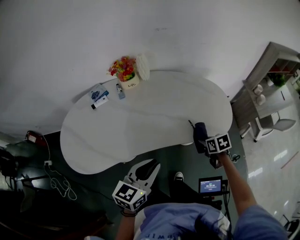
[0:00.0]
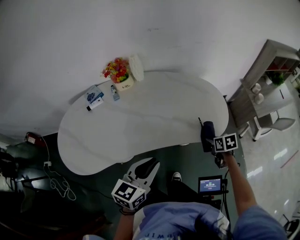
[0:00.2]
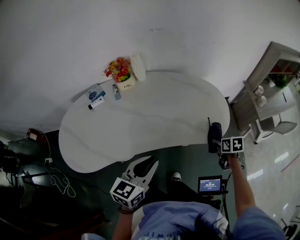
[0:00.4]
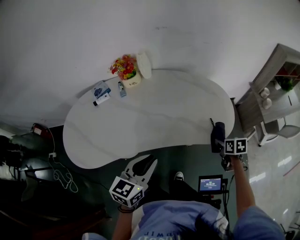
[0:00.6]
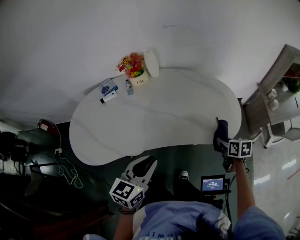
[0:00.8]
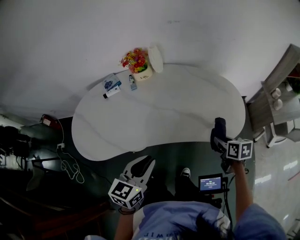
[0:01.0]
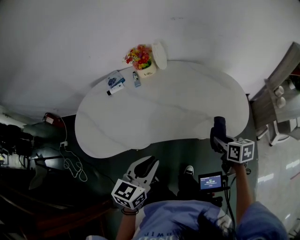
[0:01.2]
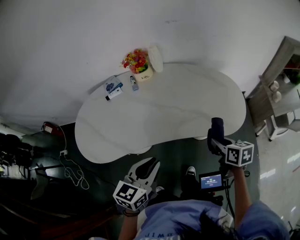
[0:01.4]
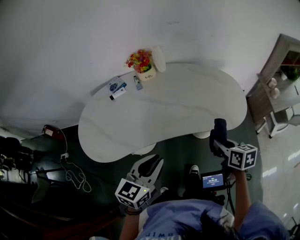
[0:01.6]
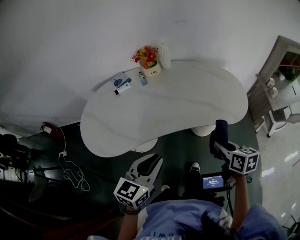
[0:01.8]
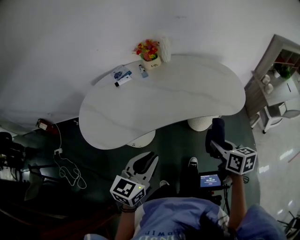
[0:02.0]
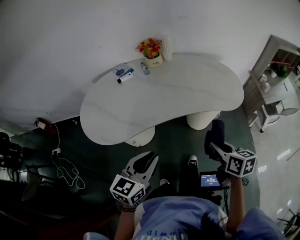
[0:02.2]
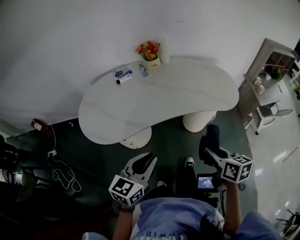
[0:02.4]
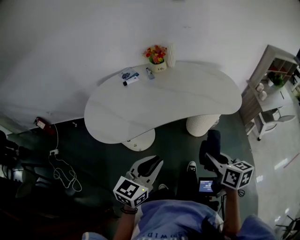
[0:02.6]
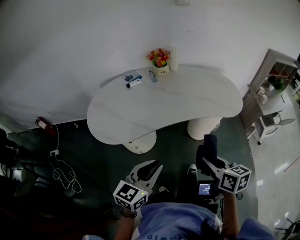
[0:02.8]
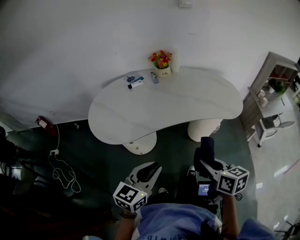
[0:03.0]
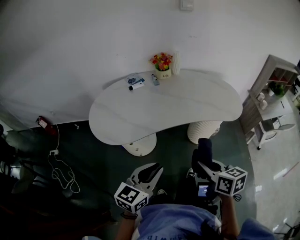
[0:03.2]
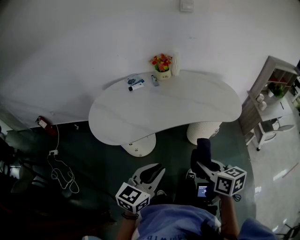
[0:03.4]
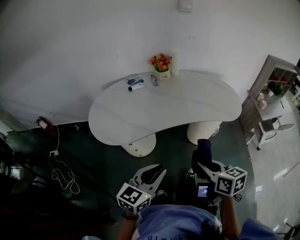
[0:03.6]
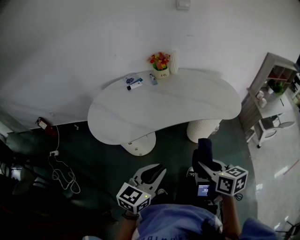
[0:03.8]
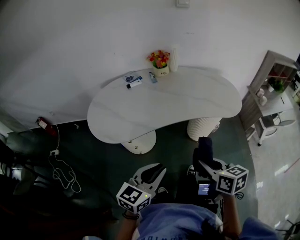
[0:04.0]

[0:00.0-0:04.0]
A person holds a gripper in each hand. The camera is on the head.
0:00.0 to 0:01.4: The right gripper goes some 10 cm upward, and reaches about 10 cm to the right, then returns.
0:01.4 to 0:02.6: Both grippers move backward and to the left, approximately 25 cm.
0:02.6 to 0:04.0: The grippers make only small movements.

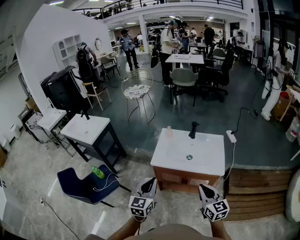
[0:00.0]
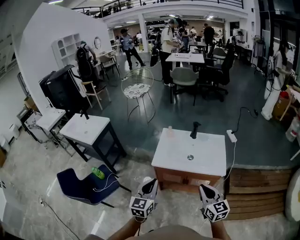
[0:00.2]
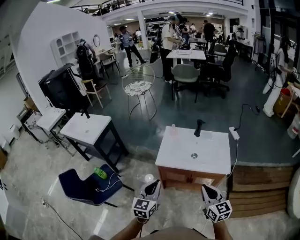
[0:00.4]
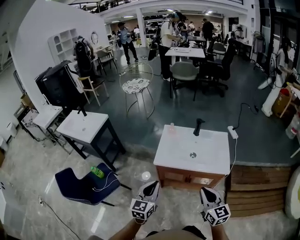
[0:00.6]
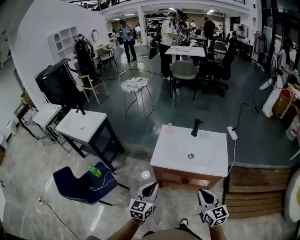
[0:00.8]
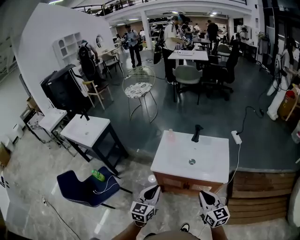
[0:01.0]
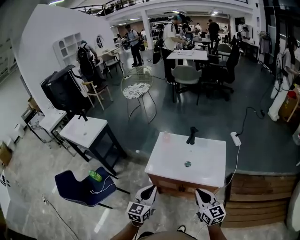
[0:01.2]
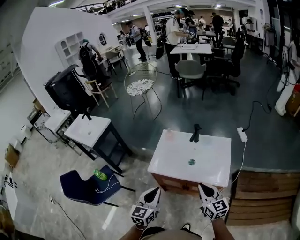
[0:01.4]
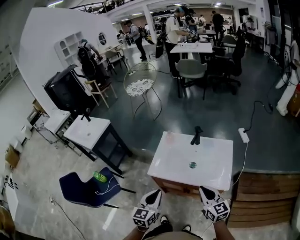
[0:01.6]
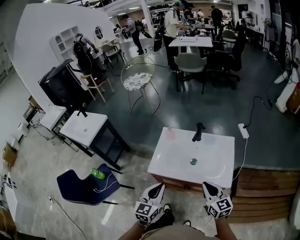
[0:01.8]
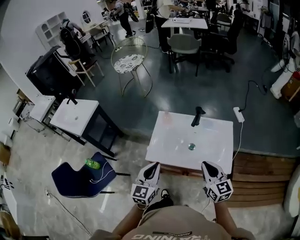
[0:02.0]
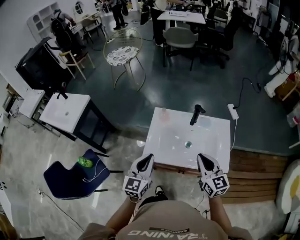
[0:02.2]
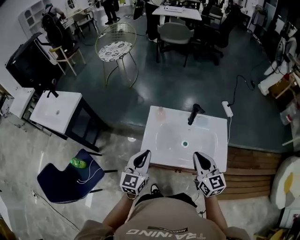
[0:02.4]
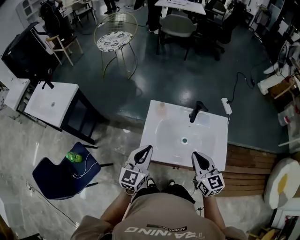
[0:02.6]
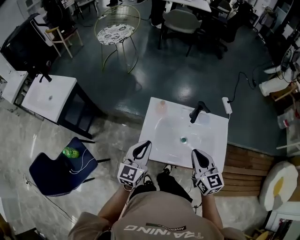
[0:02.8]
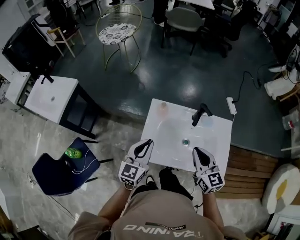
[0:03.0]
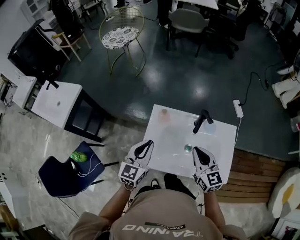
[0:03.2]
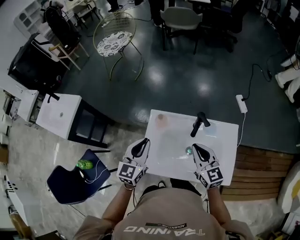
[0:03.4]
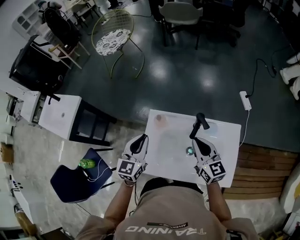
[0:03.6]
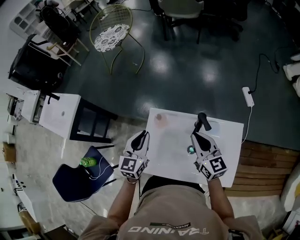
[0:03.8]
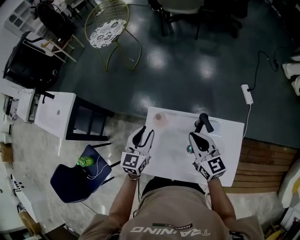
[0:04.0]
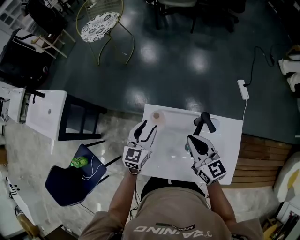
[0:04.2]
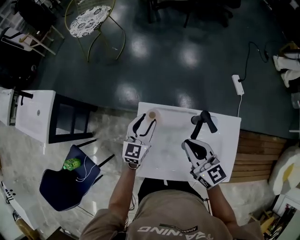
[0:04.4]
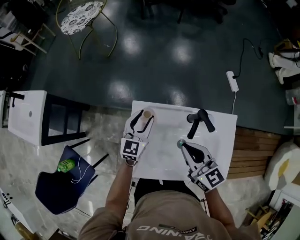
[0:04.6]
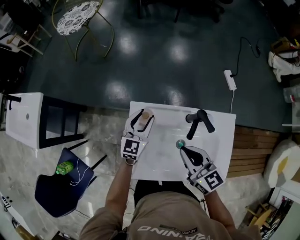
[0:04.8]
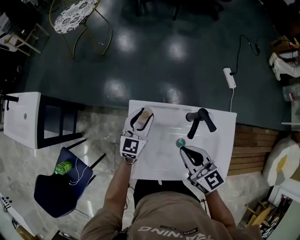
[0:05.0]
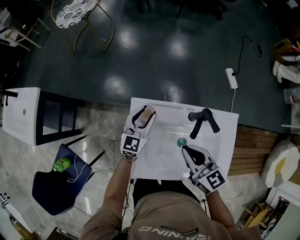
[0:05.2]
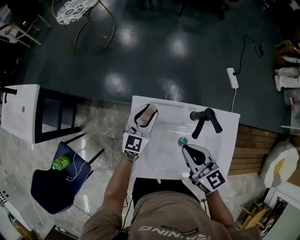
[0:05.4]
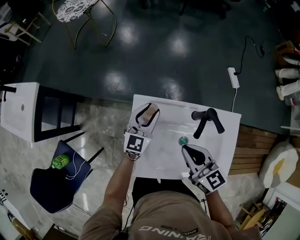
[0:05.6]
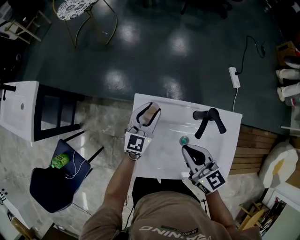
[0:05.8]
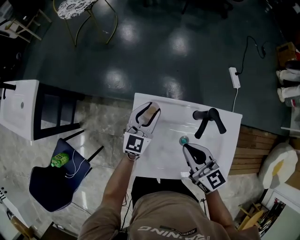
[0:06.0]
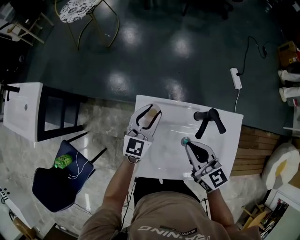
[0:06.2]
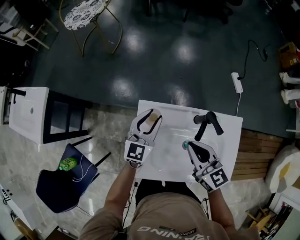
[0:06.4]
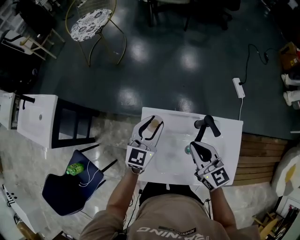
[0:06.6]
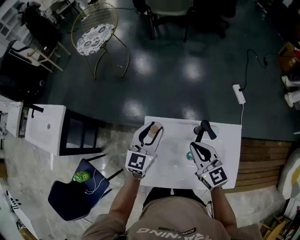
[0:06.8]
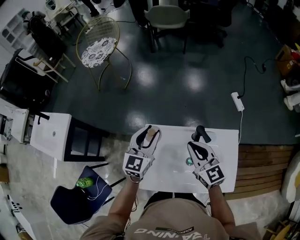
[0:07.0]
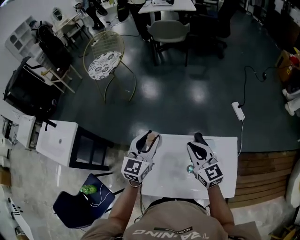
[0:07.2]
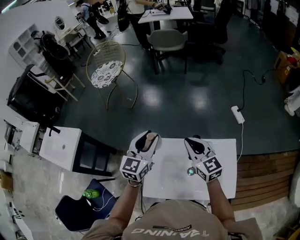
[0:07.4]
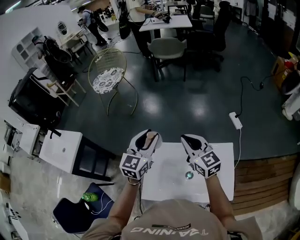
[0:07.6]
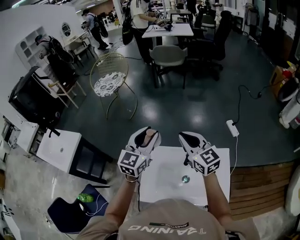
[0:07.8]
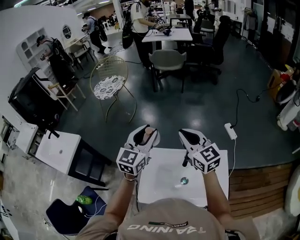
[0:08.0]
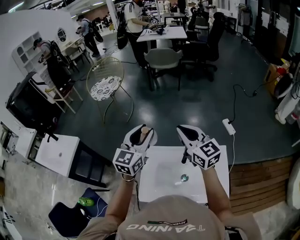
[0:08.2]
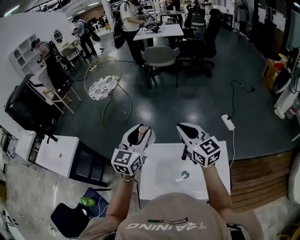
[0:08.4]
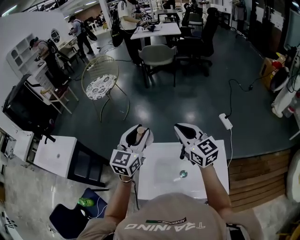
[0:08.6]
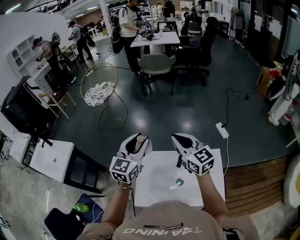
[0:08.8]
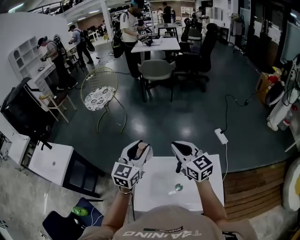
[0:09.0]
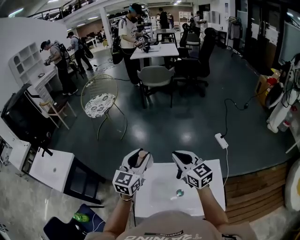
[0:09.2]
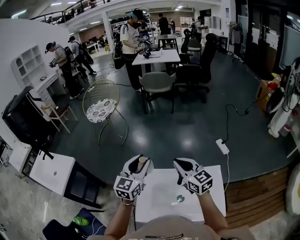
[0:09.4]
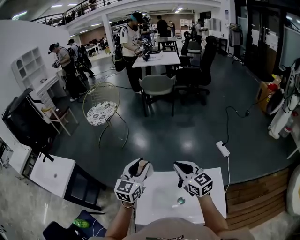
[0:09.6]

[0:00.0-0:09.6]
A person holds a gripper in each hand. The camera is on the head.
0:00.0 to 0:01.6: The right gripper travels forward by some 15 cm; the left gripper goes some 15 cm forward, downward and to the right.
0:01.6 to 0:03.2: Both grippers travel together forward, approximately 25 cm.
0:03.2 to 0:04.8: The left gripper goes some 25 cm forward and downward, and opens up, while the right gripper is displaced forward by some 10 cm.
0:04.8 to 0:06.4: The grippers make only small movements.
0:06.4 to 0:08.0: Both grippers travel together upward, about 25 cm. The right gripper changes its angle by some 20 degrees.
0:08.0 to 0:09.6: There are only small adjustments of the grippers.

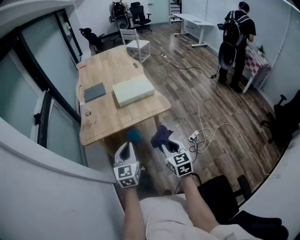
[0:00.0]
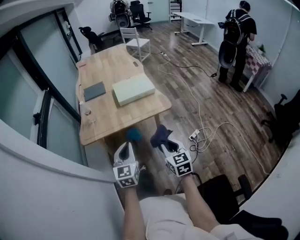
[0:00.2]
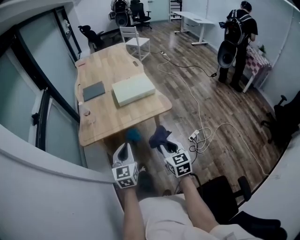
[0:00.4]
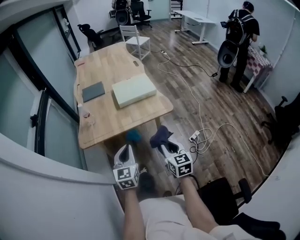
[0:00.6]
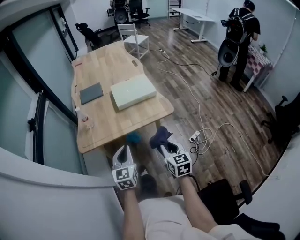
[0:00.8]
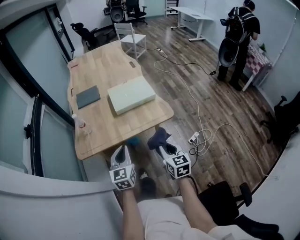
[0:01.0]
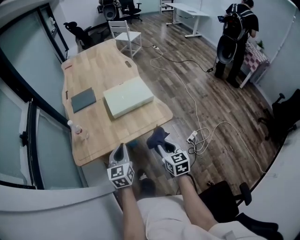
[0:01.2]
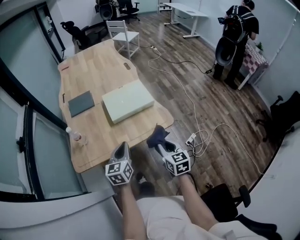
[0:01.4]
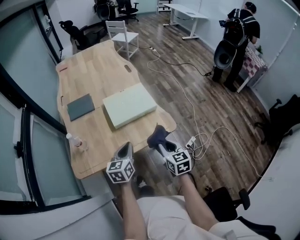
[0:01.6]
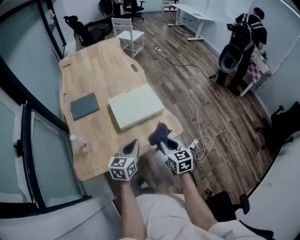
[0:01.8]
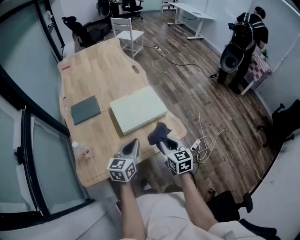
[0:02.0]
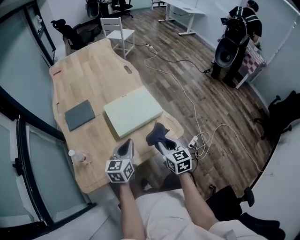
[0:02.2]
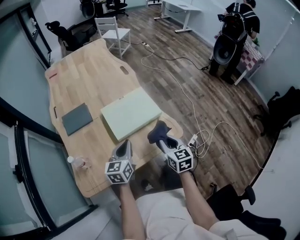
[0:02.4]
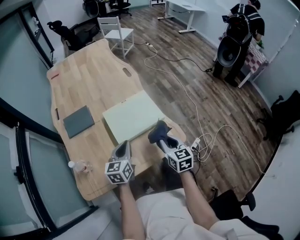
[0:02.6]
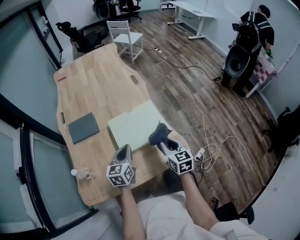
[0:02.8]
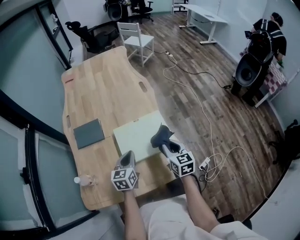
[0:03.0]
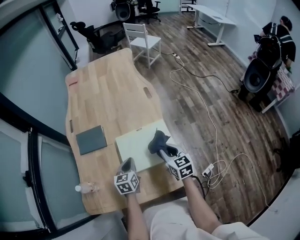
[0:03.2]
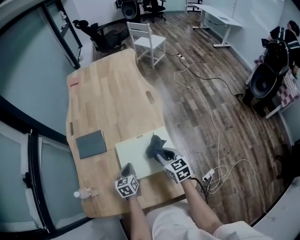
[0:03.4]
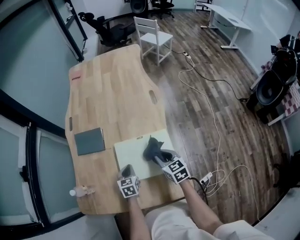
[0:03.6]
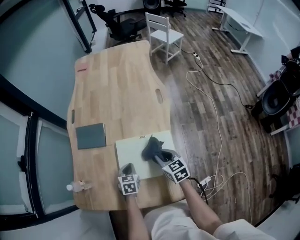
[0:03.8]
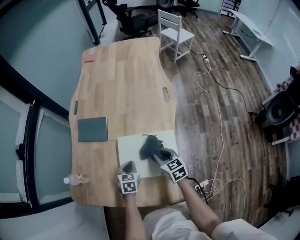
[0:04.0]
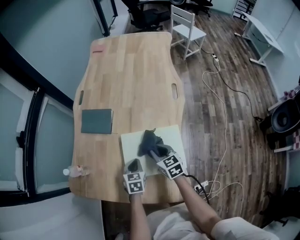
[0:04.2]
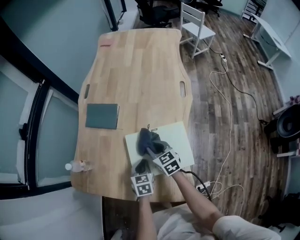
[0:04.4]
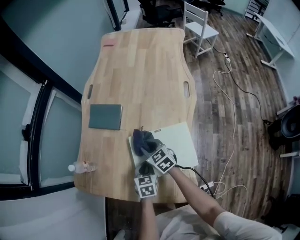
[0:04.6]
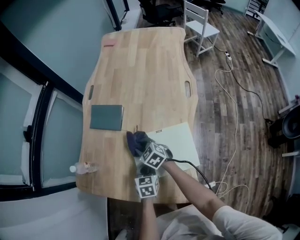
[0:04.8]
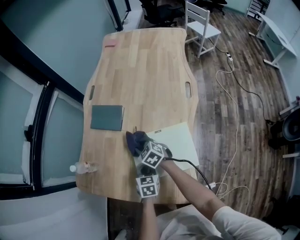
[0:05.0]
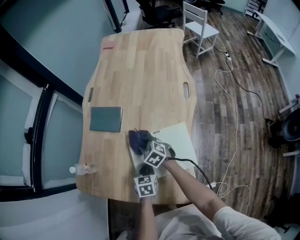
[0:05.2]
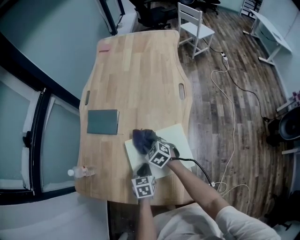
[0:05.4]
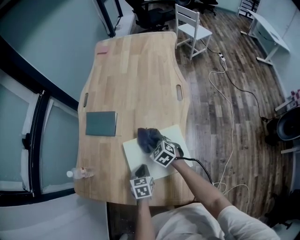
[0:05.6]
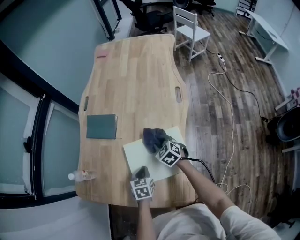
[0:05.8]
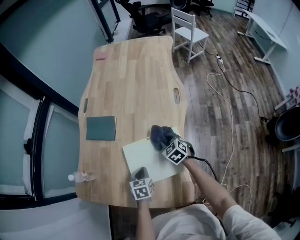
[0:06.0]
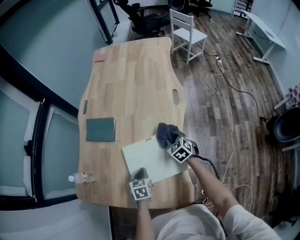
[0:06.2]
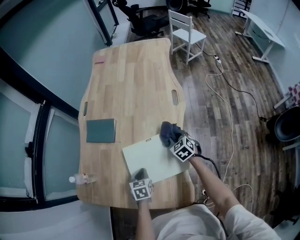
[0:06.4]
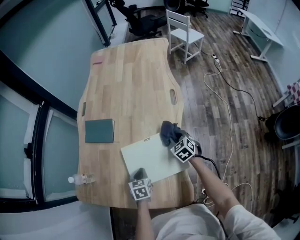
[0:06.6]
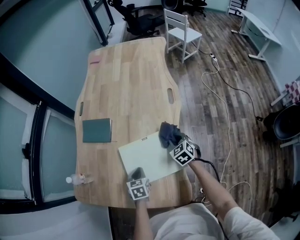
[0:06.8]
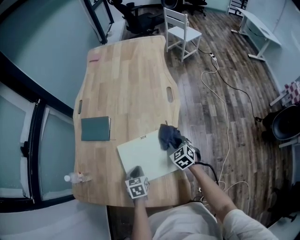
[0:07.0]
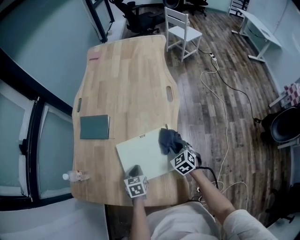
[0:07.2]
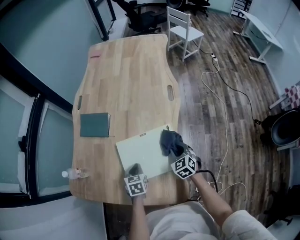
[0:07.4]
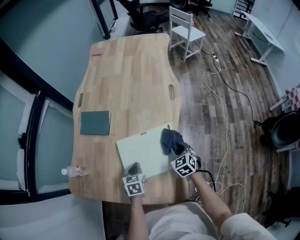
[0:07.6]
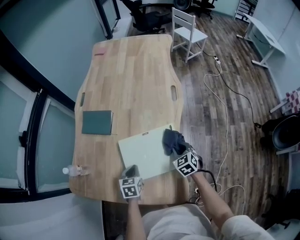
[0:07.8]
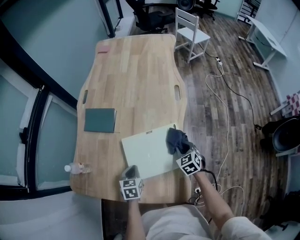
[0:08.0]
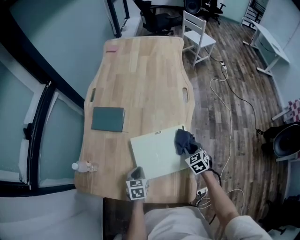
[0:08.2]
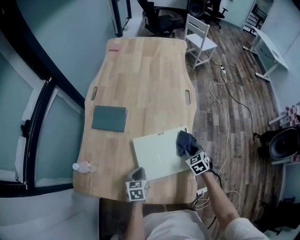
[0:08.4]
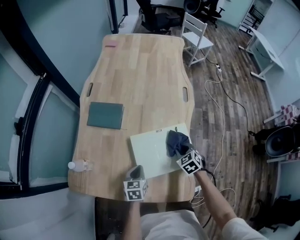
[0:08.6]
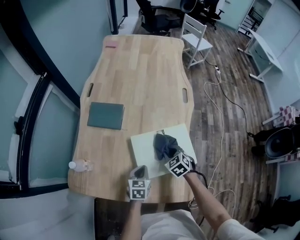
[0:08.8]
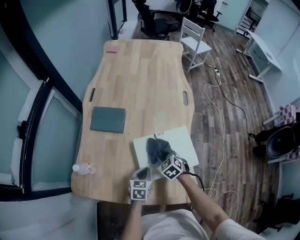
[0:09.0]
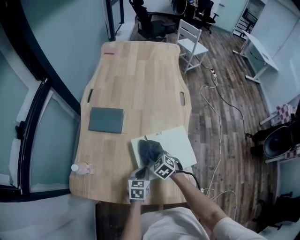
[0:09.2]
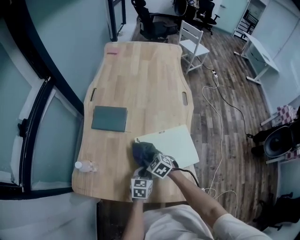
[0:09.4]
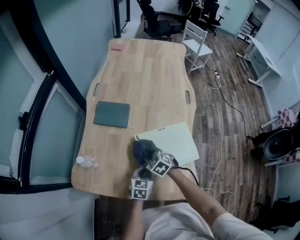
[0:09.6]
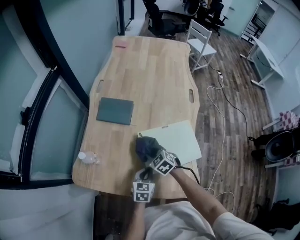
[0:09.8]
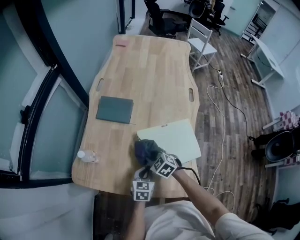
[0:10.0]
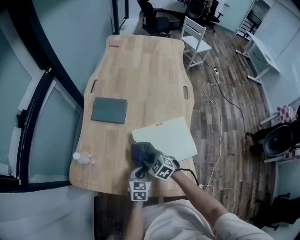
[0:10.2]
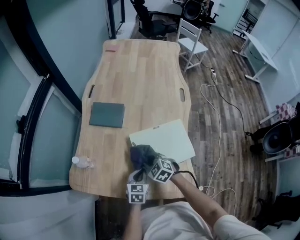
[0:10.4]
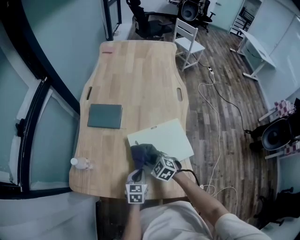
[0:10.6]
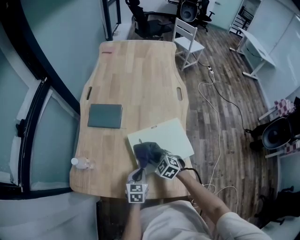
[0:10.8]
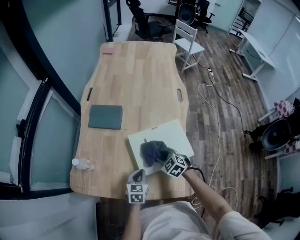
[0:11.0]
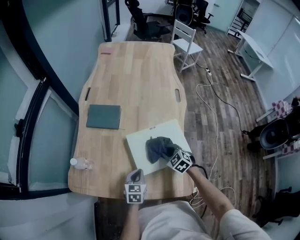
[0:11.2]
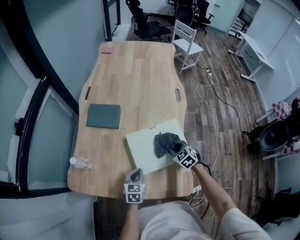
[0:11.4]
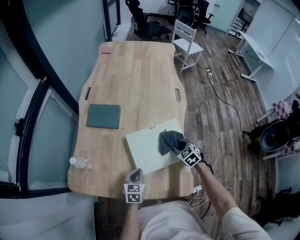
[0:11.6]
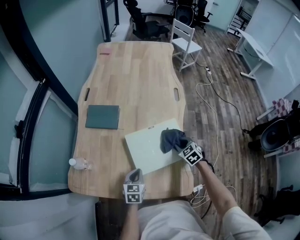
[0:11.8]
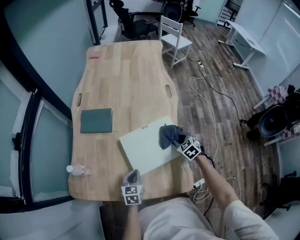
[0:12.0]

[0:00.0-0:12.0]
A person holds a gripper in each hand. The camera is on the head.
0:00.0 to 0:01.6: Both grippers move forward, approximately 30 cm. The left gripper changes its angle by approximately 30 degrees.
0:01.6 to 0:03.0: Both grippers move forward, roughly 25 cm.
0:03.0 to 0:04.4: The left gripper travels downward by some 10 cm, and changes its angle by about 40 degrees. The right gripper moves roughly 20 cm, and turns by some 40 degrees.
0:04.4 to 0:06.0: The right gripper is displaced to the right by approximately 10 cm, and turns by approximately 20 degrees.
0:06.0 to 0:07.6: The right gripper is displaced backward and to the right by about 10 cm.
0:07.6 to 0:09.0: The left gripper changes place by about 5 cm. Meanwhile the right gripper moves to the left, some 20 cm.
0:09.0 to 0:10.4: The right gripper is displaced to the left by about 10 cm. The left gripper ends up about 5 cm from where it was.
0:10.4 to 0:12.0: The right gripper is displaced to the right by approximately 25 cm, and turns by about 30 degrees.
